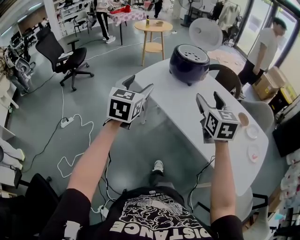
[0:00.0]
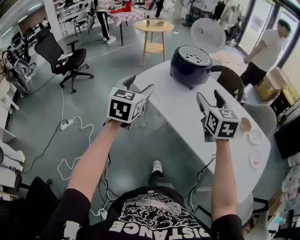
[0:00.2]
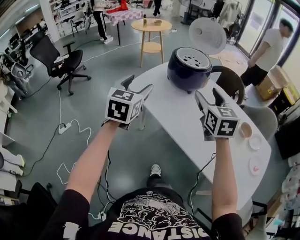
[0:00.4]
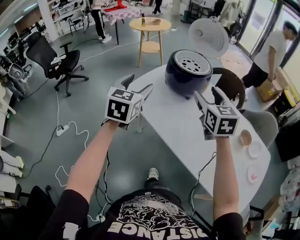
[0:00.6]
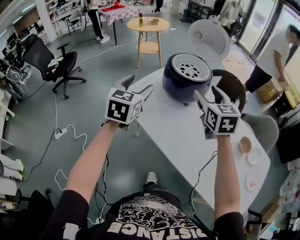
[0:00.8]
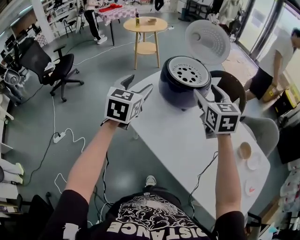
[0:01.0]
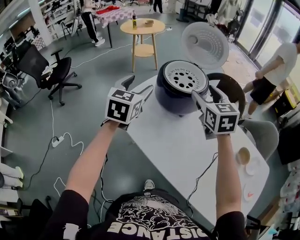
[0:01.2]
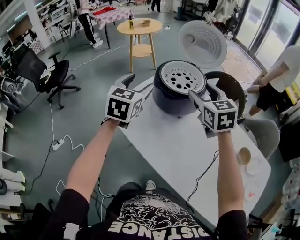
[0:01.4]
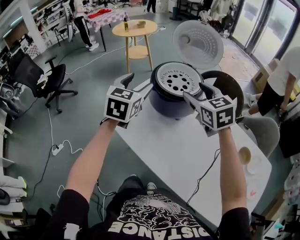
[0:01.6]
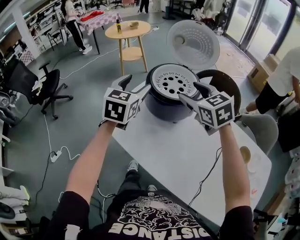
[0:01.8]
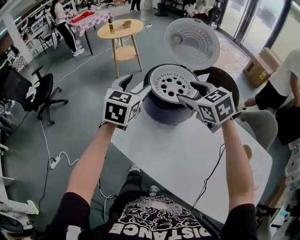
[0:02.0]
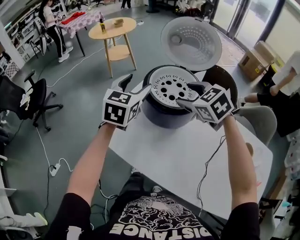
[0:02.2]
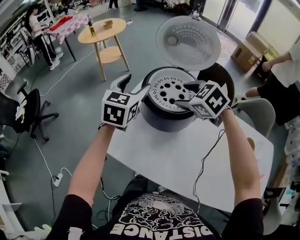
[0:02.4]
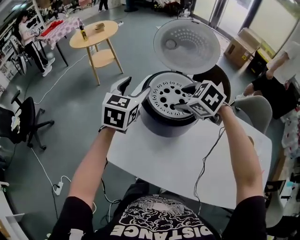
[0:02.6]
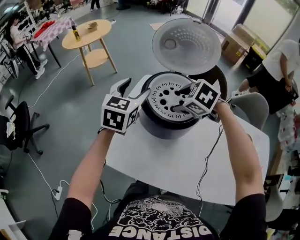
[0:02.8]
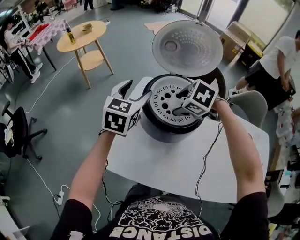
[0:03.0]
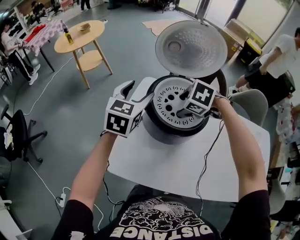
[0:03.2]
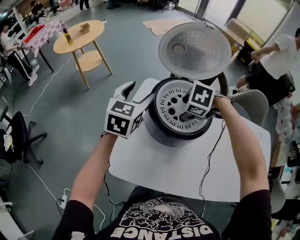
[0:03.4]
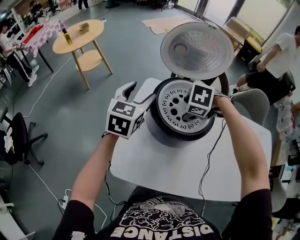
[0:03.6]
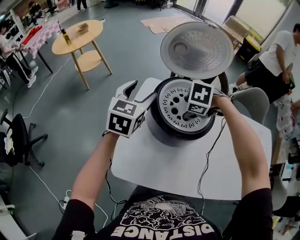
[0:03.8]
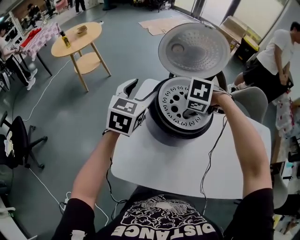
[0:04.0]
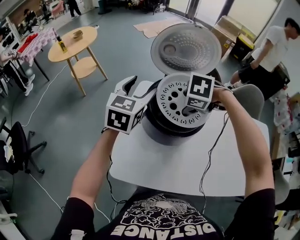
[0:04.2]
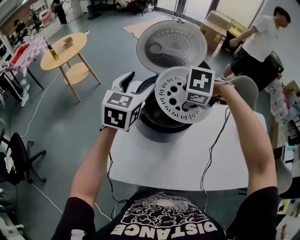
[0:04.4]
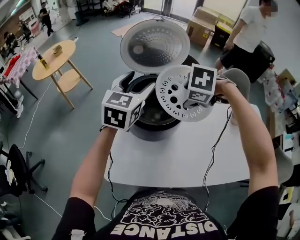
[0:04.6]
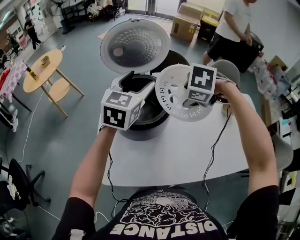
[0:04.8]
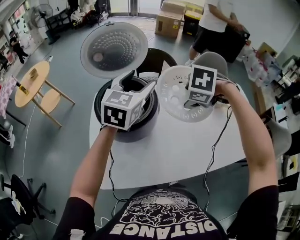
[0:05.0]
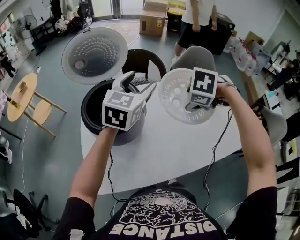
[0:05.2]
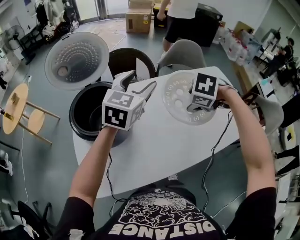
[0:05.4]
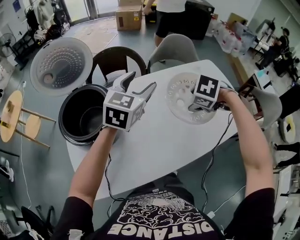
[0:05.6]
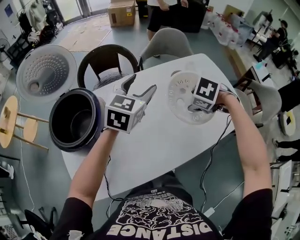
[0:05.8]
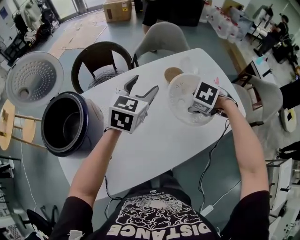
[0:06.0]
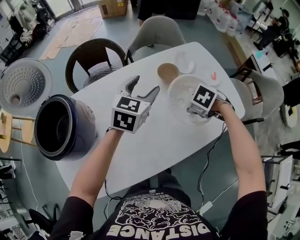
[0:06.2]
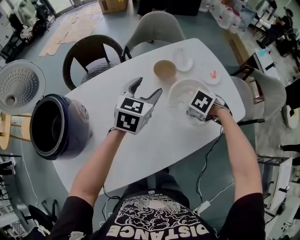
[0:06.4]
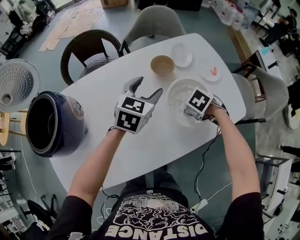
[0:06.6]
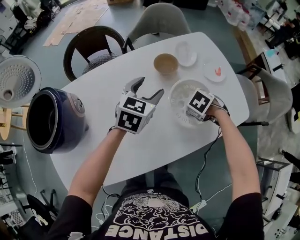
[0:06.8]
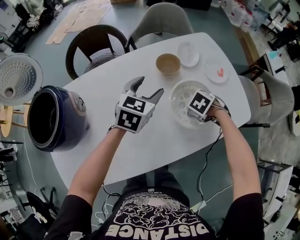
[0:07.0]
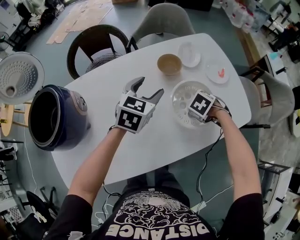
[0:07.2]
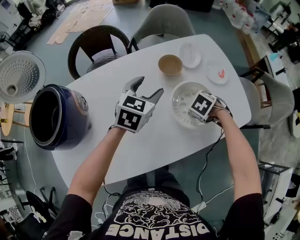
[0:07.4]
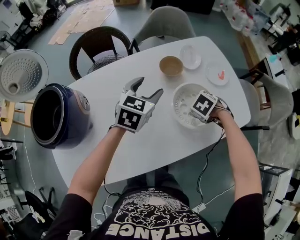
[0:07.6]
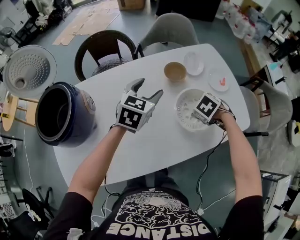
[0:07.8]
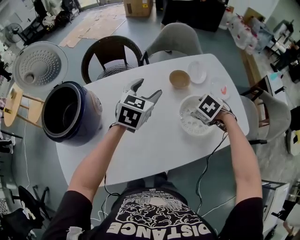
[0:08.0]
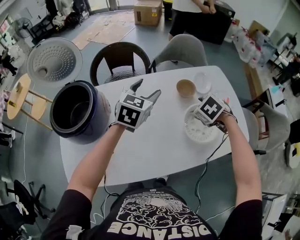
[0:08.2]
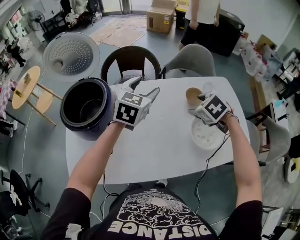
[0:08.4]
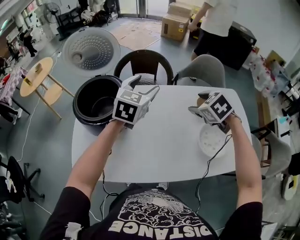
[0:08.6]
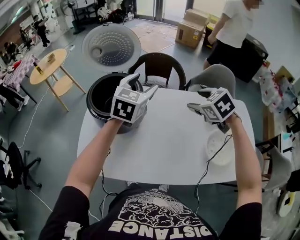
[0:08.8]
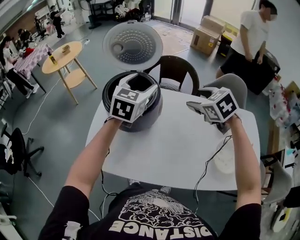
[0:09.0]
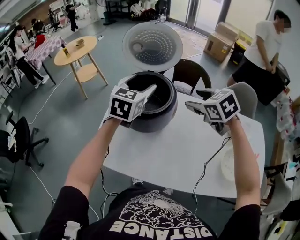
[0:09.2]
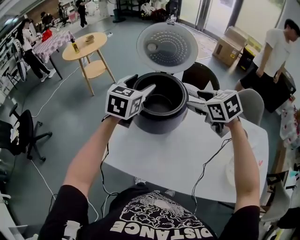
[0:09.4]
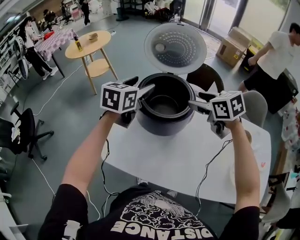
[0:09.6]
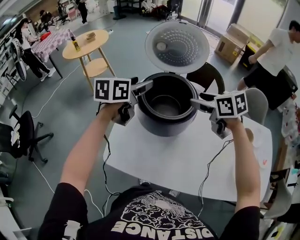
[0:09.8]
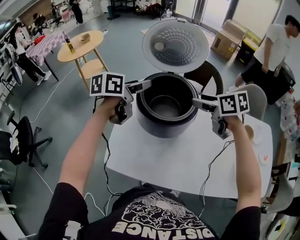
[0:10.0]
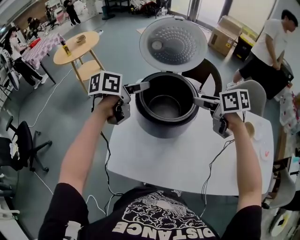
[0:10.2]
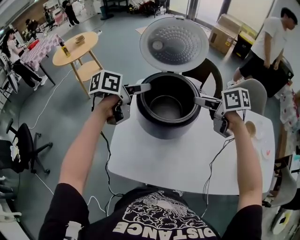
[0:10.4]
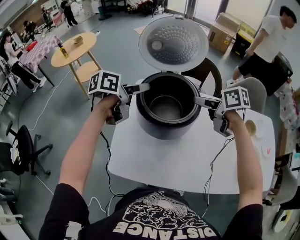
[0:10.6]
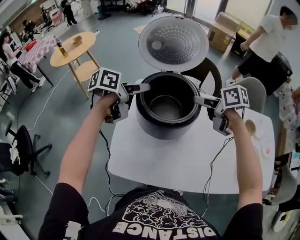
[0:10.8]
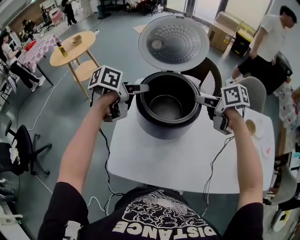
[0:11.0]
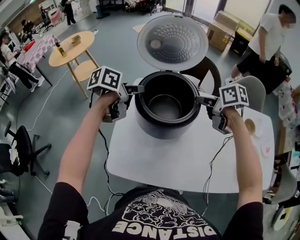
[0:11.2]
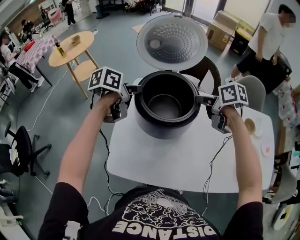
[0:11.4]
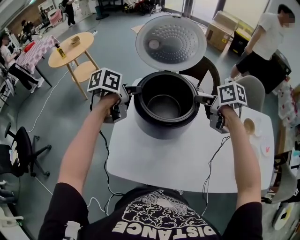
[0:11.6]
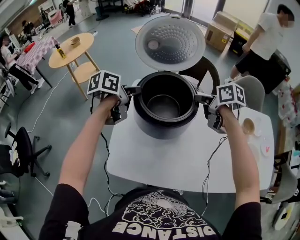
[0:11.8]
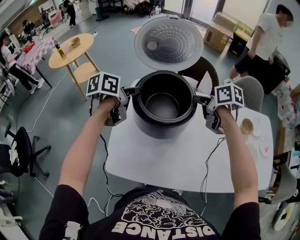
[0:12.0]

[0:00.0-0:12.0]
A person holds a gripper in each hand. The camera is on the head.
0.0 to 1.6 s: The pair of grippers is taken forward, approximately 40 cm.
1.6 to 3.0 s: The left gripper moves forward, roughly 25 cm, and rotates some 30 degrees, while the right gripper is displaced forward and downward by some 25 cm, and tilts its fingers some 50 degrees downward.
3.0 to 4.4 s: The right gripper moves roughly 5 cm. The left gripper is displaced upward by some 5 cm.
4.4 to 6.0 s: Both grippers are carried about 60 cm. The left gripper changes its angle by approximately 40 degrees. Meanwhile the right gripper rolls clockwise, seen from behind, by about 50 degrees.
6.0 to 7.6 s: Both grippers travel together downward, some 10 cm.
7.6 to 9.0 s: The left gripper shifts by roughly 40 cm, and rotates approximately 40 degrees; the right gripper changes place by some 50 cm, and points its fingers approximately 40 degrees further upward.
9.0 to 10.4 s: The right gripper travels to the left and forward by about 20 cm, and rotates around the line of its fingers by roughly 40 degrees, clockwise from behind. Meanwhile the left gripper shifts about 20 cm to the left, and rotates around the line of its fingers by about 50 degrees, counterclockwise from behind.
10.4 to 12.0 s: The left gripper closes. The right gripper closes.

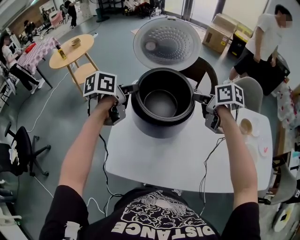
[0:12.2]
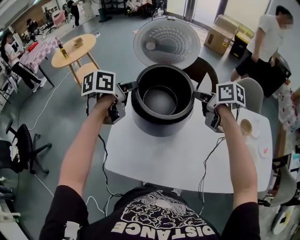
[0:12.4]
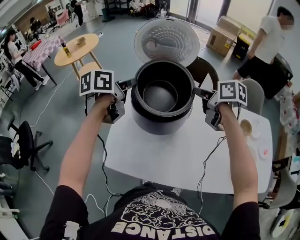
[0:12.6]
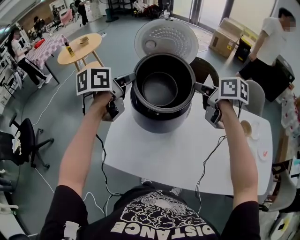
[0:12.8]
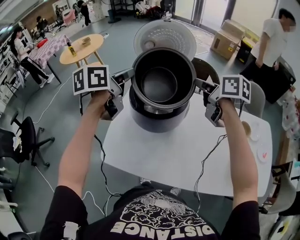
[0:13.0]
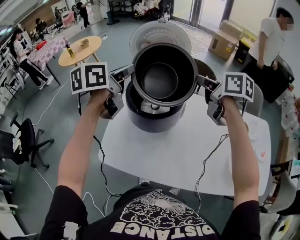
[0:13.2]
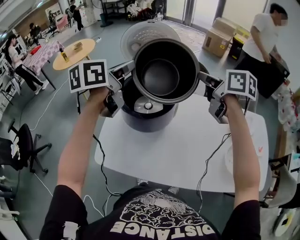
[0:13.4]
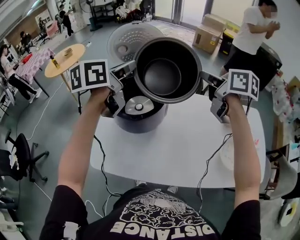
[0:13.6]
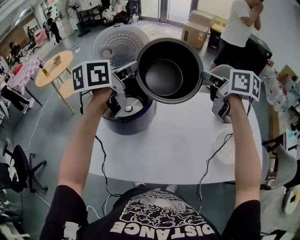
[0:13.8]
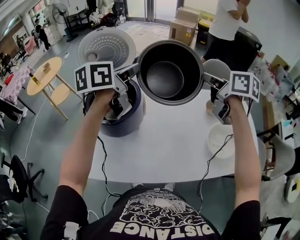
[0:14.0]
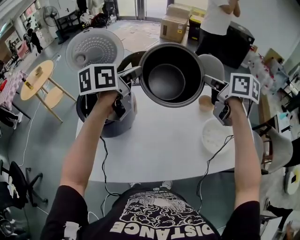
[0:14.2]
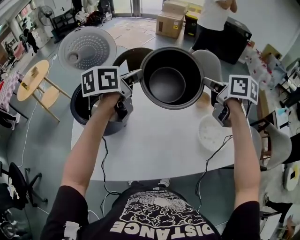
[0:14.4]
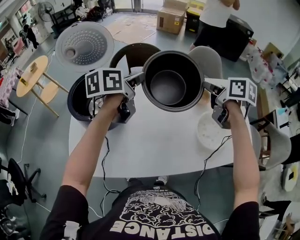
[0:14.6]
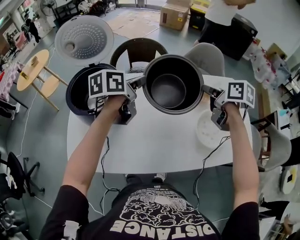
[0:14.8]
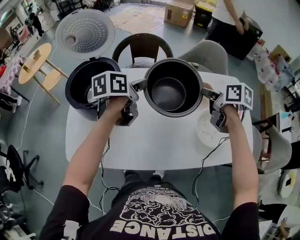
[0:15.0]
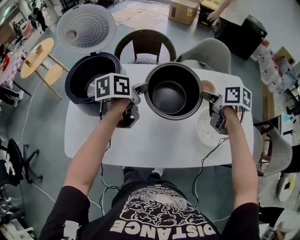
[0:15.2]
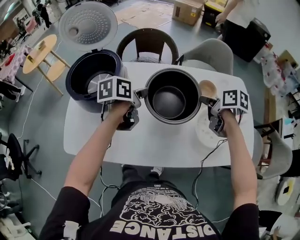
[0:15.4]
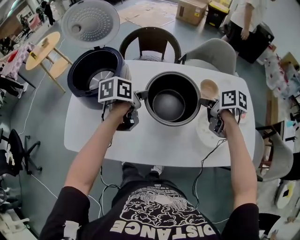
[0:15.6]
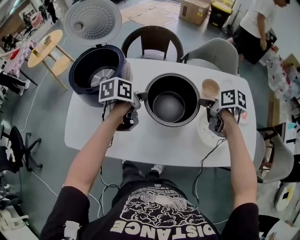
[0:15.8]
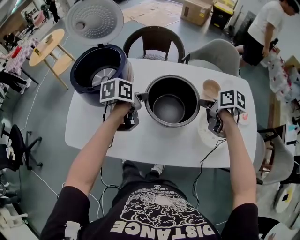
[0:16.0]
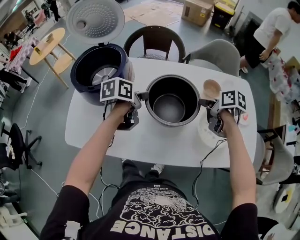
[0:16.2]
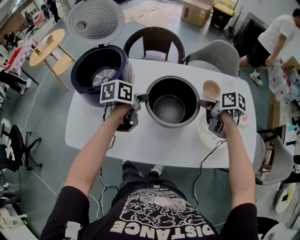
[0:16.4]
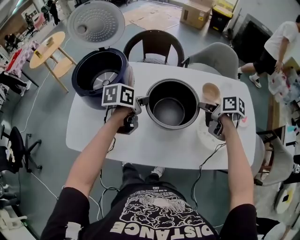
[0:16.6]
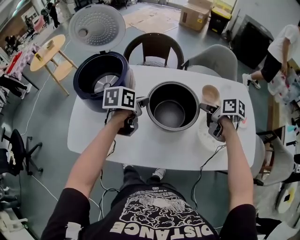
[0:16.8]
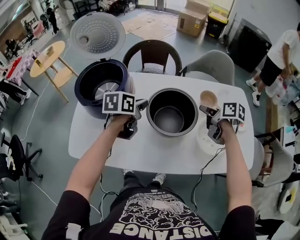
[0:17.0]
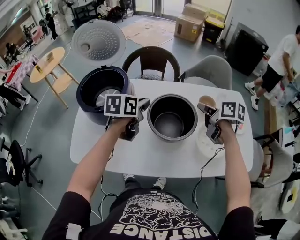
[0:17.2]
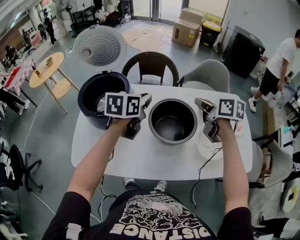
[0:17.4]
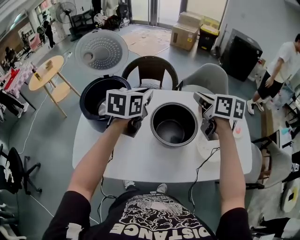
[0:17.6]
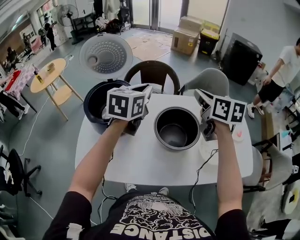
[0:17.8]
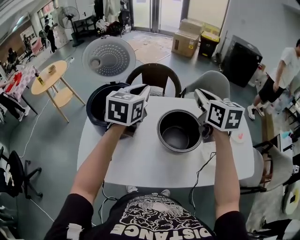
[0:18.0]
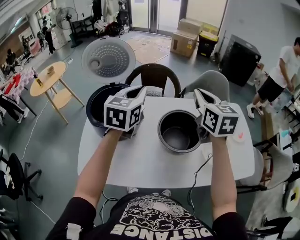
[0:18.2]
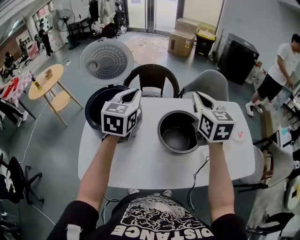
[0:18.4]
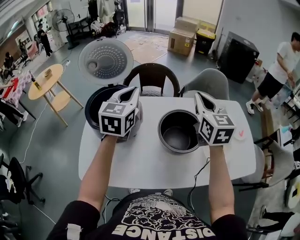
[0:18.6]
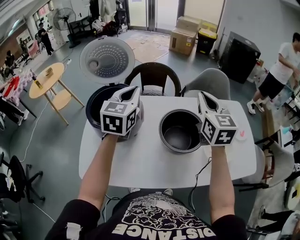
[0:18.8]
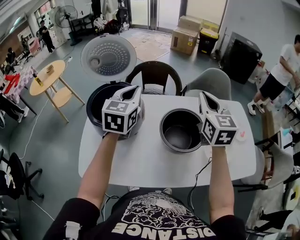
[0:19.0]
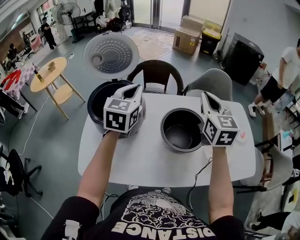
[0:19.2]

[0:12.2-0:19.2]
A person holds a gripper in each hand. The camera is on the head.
12.2 to 13.6 s: The two grippers go about 20 cm upward and to the right. The left gripper changes its angle by roughly 20 degrees. Meanwhile the right gripper turns by approximately 20 degrees.
13.6 to 15.0 s: Both grippers move to the right and downward, approximately 35 cm. The left gripper rotates roughly 20 degrees. The right gripper turns by some 20 degrees.
15.0 to 16.4 s: The two grippers go roughly 10 cm downward.
16.4 to 17.8 s: The right gripper travels upward and to the left by about 25 cm, and changes its angle by approximately 40 degrees; the left gripper is displaced upward by approximately 20 cm, and turns by some 40 degrees.
17.8 to 19.2 s: The left gripper travels to the left by roughly 5 cm, while the right gripper turns by roughly 30 degrees.

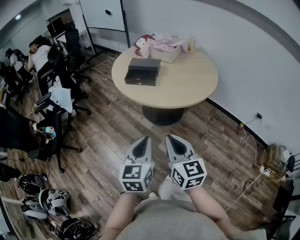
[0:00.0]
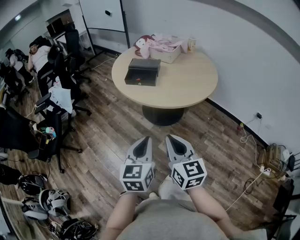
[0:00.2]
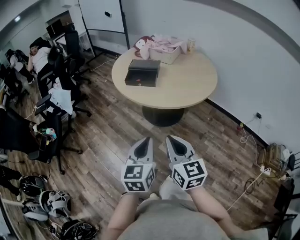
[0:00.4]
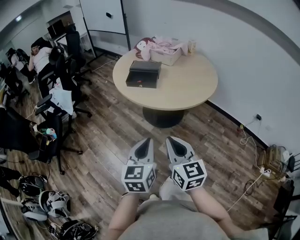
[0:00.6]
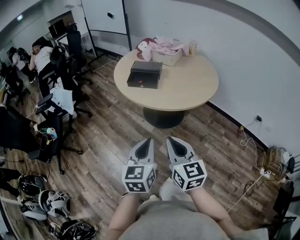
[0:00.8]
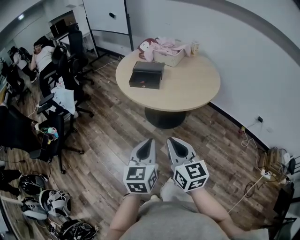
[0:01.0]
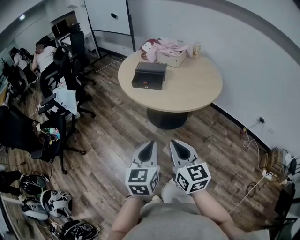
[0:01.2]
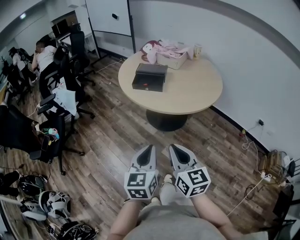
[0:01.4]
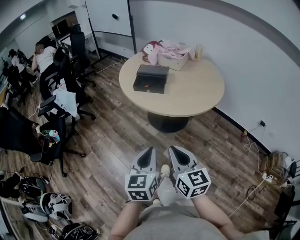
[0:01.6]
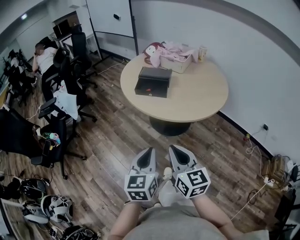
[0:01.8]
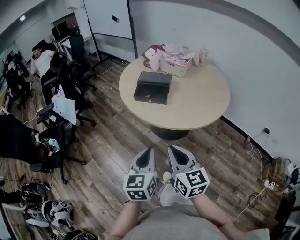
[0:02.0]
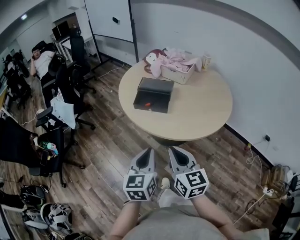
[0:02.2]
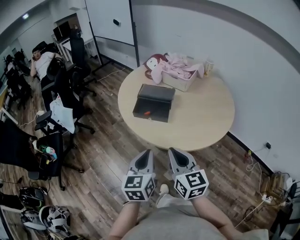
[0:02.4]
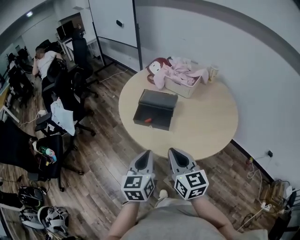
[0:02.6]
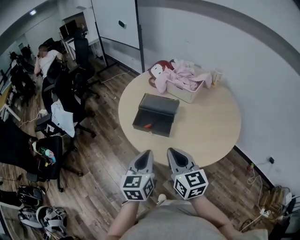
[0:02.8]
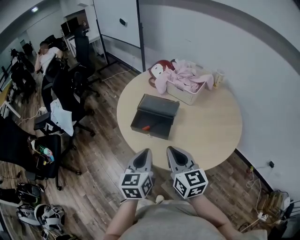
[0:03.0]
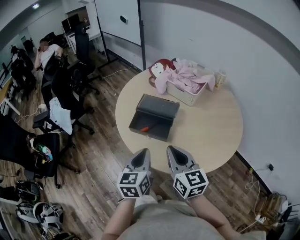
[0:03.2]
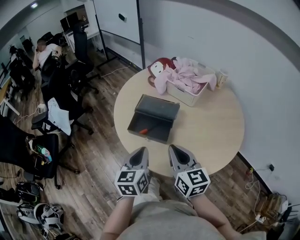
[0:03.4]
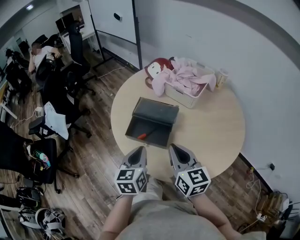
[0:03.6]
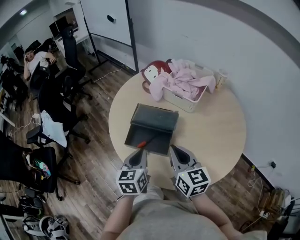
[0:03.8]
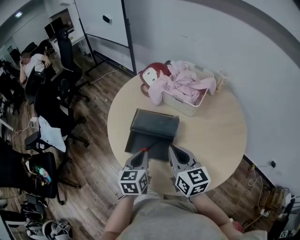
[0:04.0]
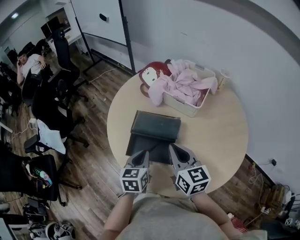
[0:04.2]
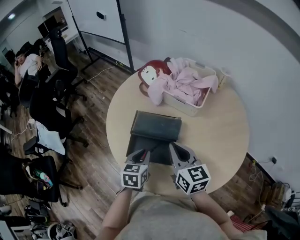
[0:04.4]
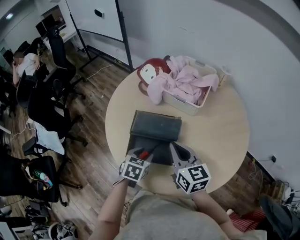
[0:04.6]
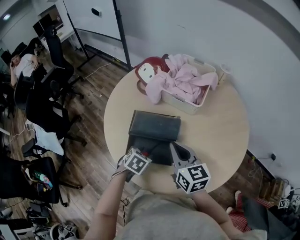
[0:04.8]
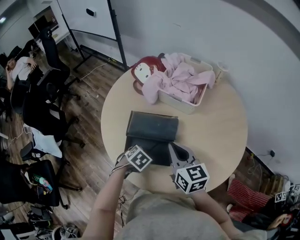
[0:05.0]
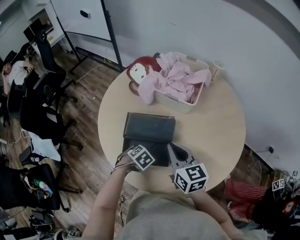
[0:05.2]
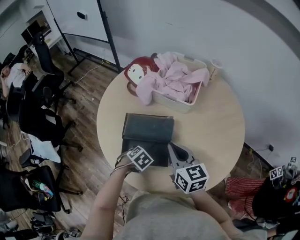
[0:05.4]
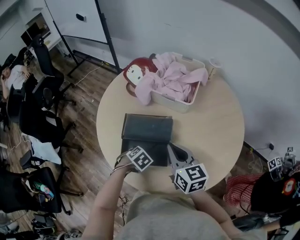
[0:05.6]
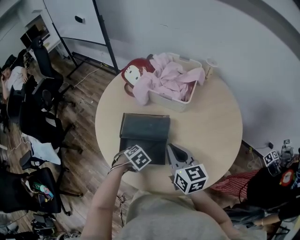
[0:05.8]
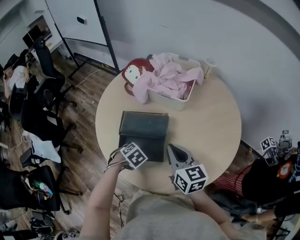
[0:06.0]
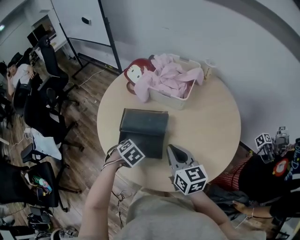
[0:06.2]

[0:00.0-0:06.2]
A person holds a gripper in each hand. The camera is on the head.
0.0 to 1.6 s: There are only small adjustments of the grippers.
1.6 to 3.2 s: The grippers both shift forward by some 35 cm.
3.2 to 4.6 s: The left gripper travels forward and downward by roughly 25 cm, points its fingers about 30 degrees further downward, and opens up. Meanwhile the right gripper moves forward, some 20 cm.
4.6 to 6.2 s: The right gripper changes place by approximately 5 cm. The left gripper goes downward and returns, about 10 cm each way, changes its angle by roughly 40 degrees, and closes up.
